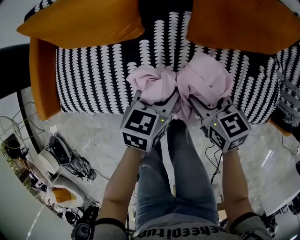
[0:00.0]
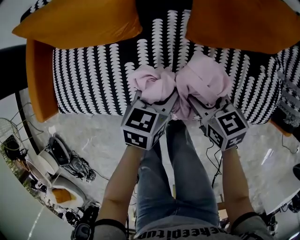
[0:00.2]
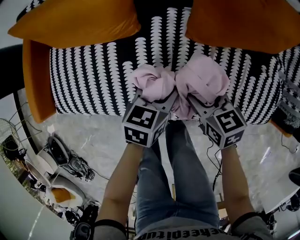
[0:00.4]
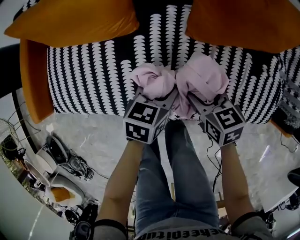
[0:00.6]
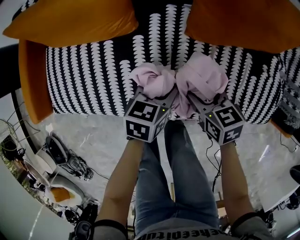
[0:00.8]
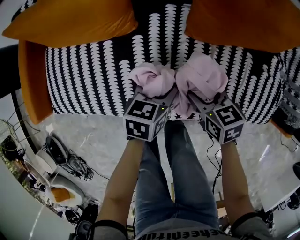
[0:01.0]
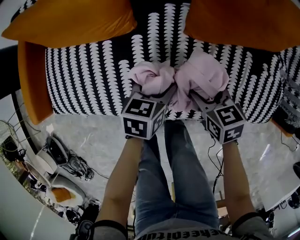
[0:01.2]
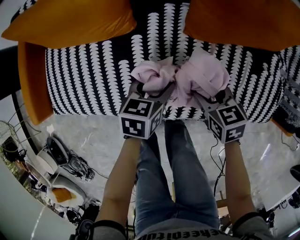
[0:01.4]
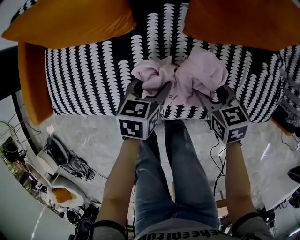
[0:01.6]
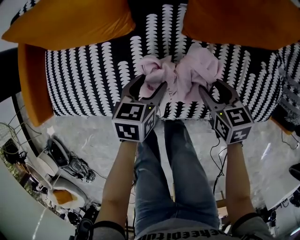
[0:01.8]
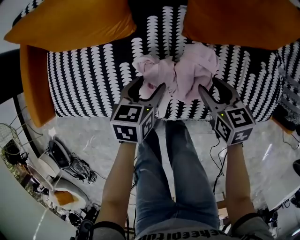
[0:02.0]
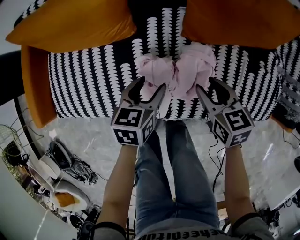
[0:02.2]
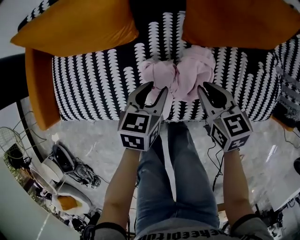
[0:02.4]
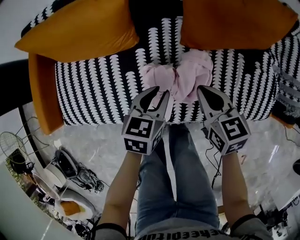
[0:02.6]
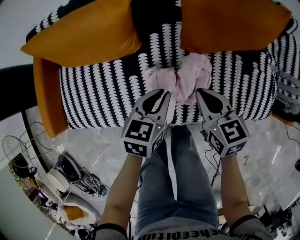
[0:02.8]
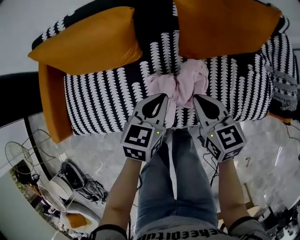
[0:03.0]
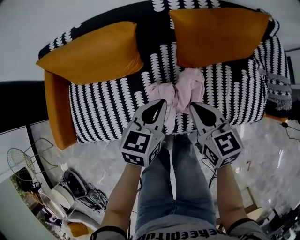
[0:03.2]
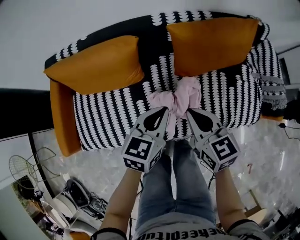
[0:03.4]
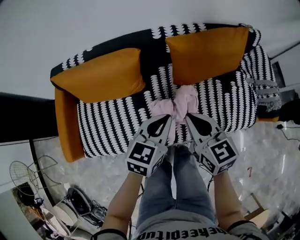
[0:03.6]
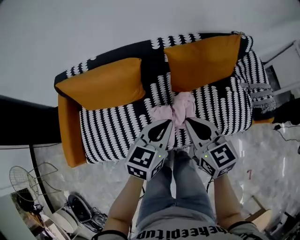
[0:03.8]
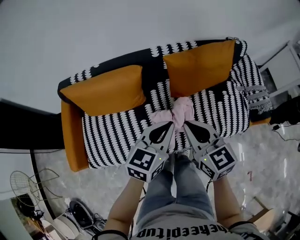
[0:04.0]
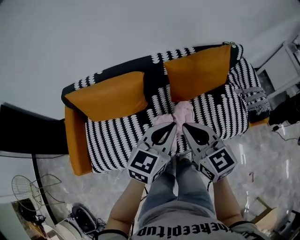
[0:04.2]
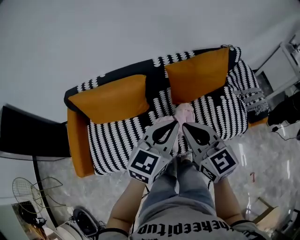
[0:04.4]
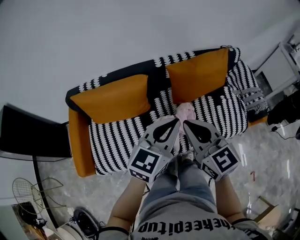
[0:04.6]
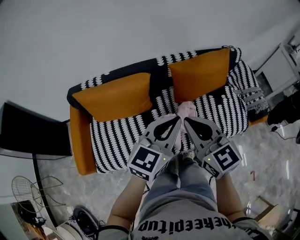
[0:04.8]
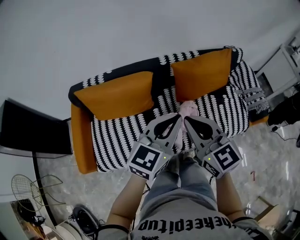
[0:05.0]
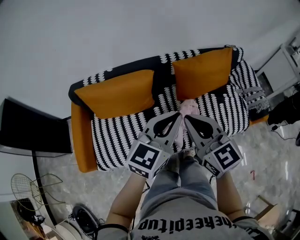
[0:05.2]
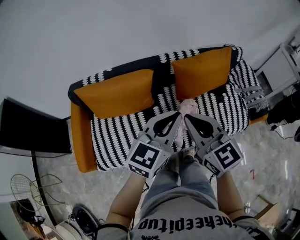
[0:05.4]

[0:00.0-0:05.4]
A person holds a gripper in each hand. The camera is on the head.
0:00.0 to 0:01.4: The left gripper goes roughly 10 cm downward; the right gripper is displaced downward and to the right by roughly 15 cm.
0:01.4 to 0:02.8: Both grippers travel together upward, about 15 cm. The left gripper closes; the right gripper closes up.
0:02.8 to 0:04.0: The grippers both shift upward by about 25 cm. The right gripper changes its angle by approximately 20 degrees; the left gripper swivels about 30 degrees.
0:04.0 to 0:05.4: The left gripper travels upward by roughly 10 cm; the right gripper travels upward and to the left by about 15 cm.

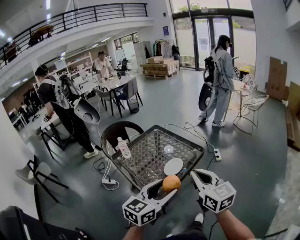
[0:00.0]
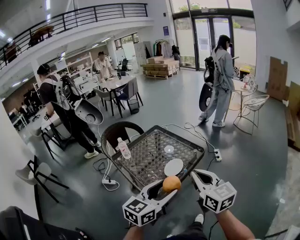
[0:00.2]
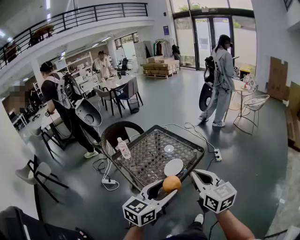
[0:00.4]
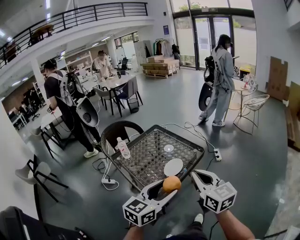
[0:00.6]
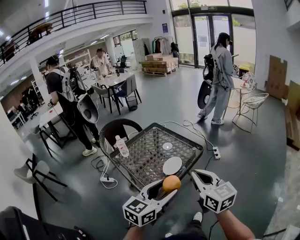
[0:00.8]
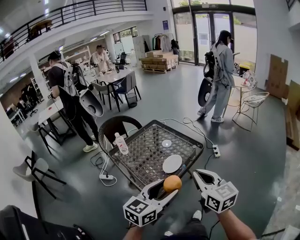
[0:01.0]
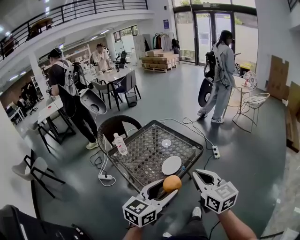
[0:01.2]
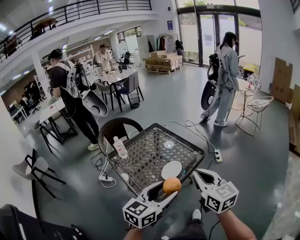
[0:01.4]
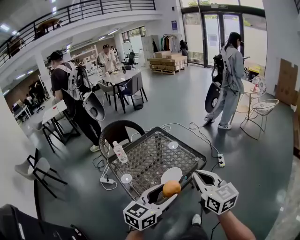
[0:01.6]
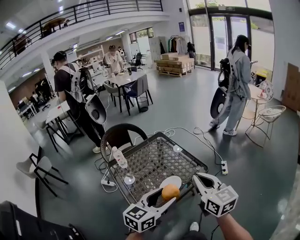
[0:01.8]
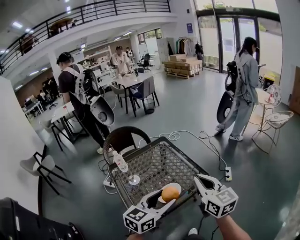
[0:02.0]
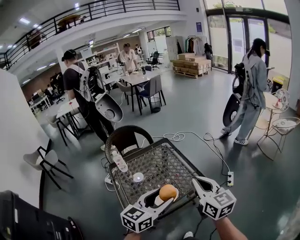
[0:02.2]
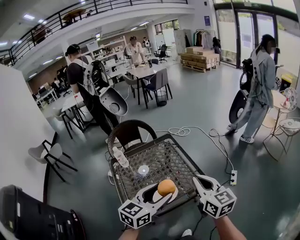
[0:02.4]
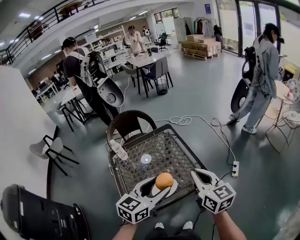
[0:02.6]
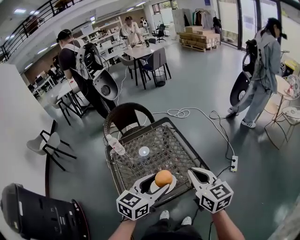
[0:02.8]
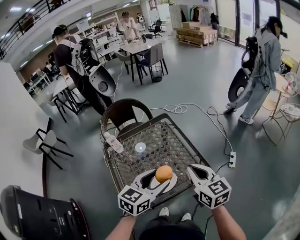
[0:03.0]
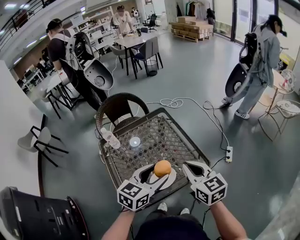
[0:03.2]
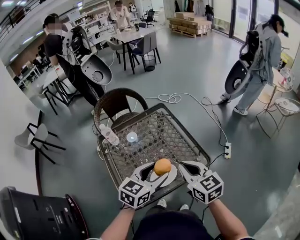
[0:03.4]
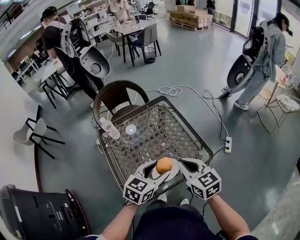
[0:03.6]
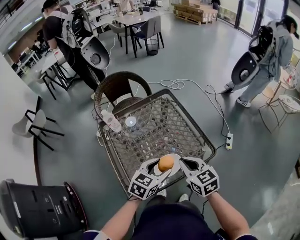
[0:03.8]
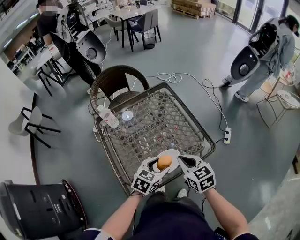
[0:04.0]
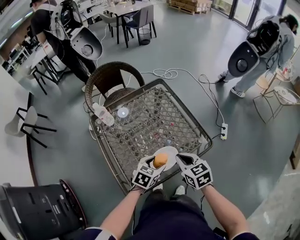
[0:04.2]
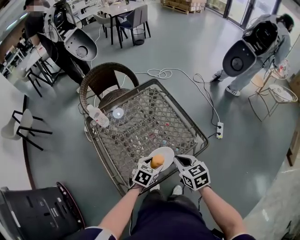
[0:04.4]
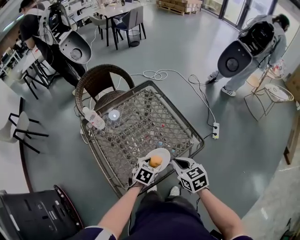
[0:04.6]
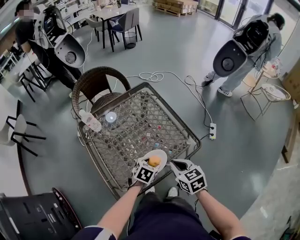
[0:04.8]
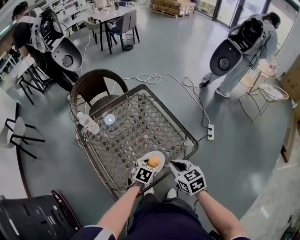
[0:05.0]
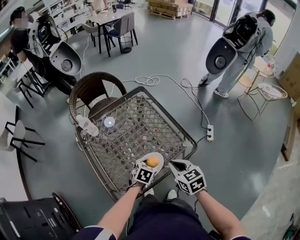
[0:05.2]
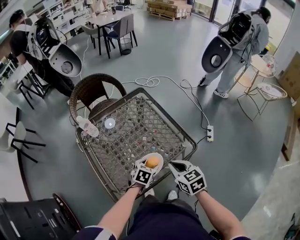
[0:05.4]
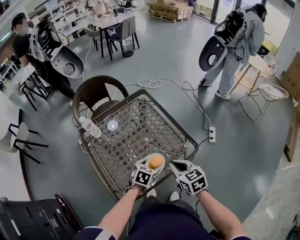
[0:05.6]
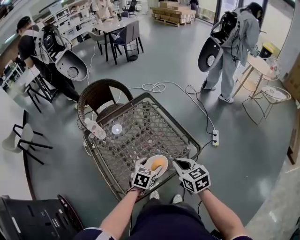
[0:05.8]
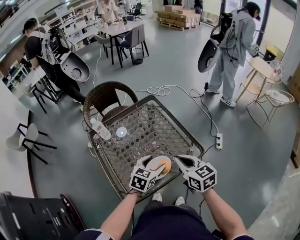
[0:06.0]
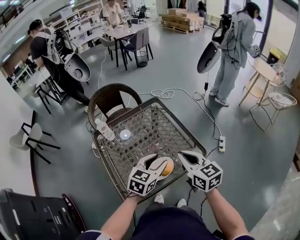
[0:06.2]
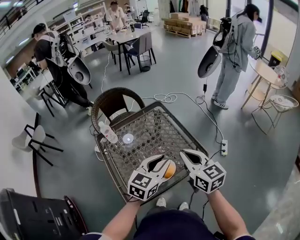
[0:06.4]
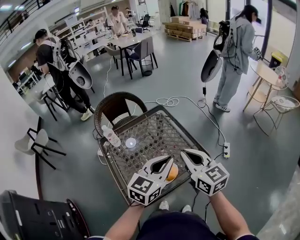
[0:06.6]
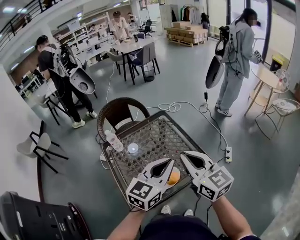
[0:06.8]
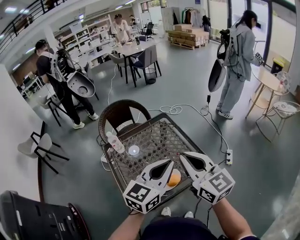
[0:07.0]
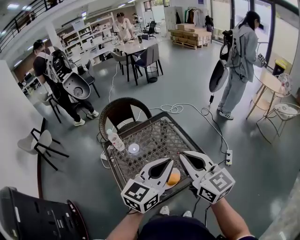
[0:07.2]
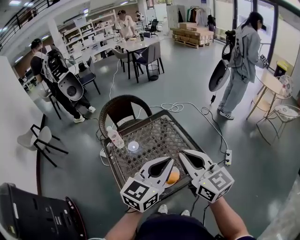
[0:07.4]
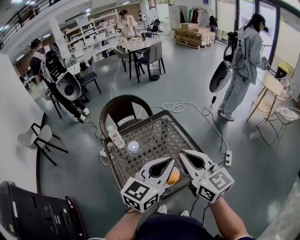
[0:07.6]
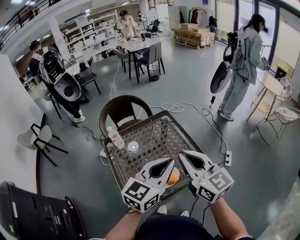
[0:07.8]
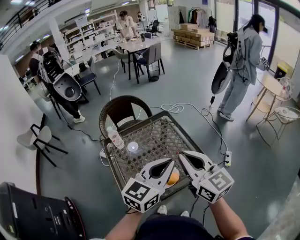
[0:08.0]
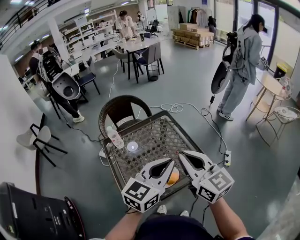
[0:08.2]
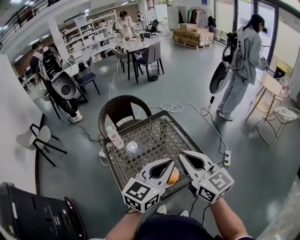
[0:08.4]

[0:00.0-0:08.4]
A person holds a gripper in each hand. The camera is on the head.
0:00.0 to 0:01.4: The left gripper moves approximately 5 cm. Meanwhile the right gripper heads forward, covering roughly 5 cm.
0:01.4 to 0:02.8: The grippers both shift forward by some 25 cm. The right gripper turns by roughly 20 degrees. The left gripper rotates some 20 degrees.
0:02.8 to 0:04.2: The right gripper goes approximately 20 cm downward and to the left, and turns by about 30 degrees, while the left gripper travels downward by some 25 cm, and turns by some 30 degrees.
0:04.2 to 0:05.6: The left gripper ends up roughly 5 cm from where it was.
0:05.6 to 0:07.0: Both grippers travel together upward, approximately 30 cm. The left gripper tilts its fingers about 50 degrees upward, and closes up; the right gripper angles its fingers upward, by about 40 degrees.
0:07.0 to 0:08.4: Both grippers stay about where they are.

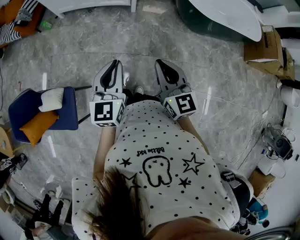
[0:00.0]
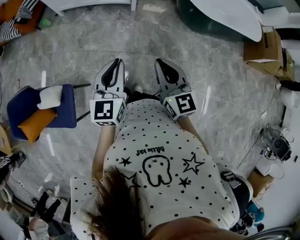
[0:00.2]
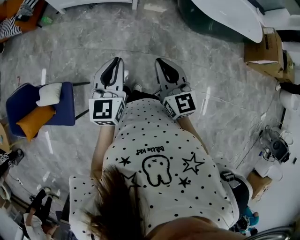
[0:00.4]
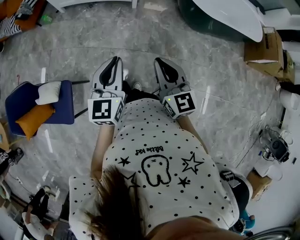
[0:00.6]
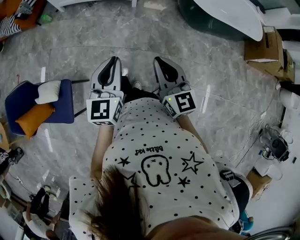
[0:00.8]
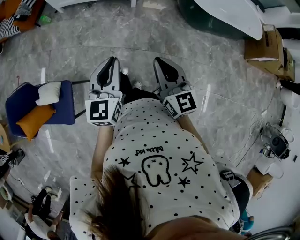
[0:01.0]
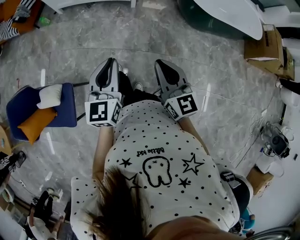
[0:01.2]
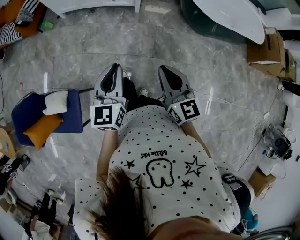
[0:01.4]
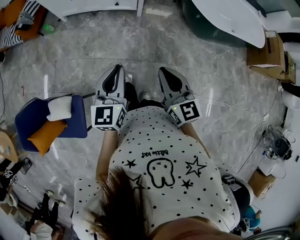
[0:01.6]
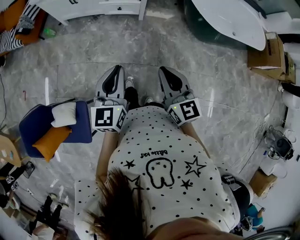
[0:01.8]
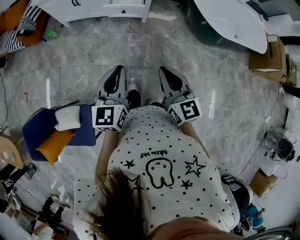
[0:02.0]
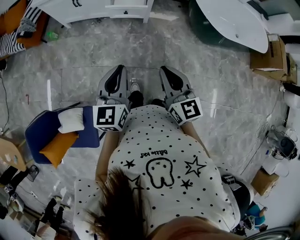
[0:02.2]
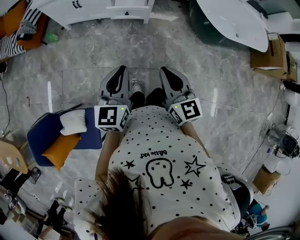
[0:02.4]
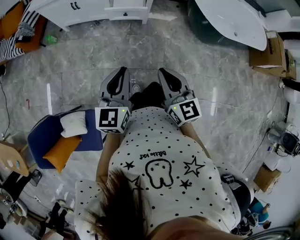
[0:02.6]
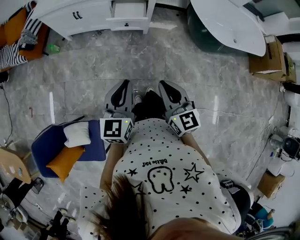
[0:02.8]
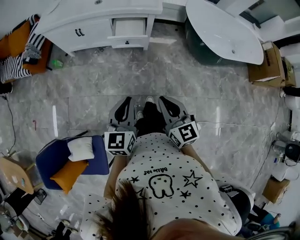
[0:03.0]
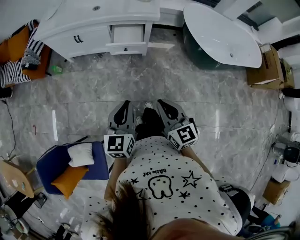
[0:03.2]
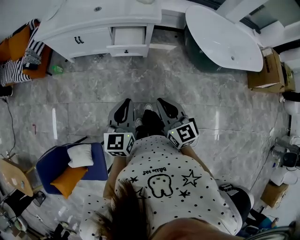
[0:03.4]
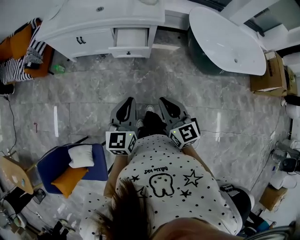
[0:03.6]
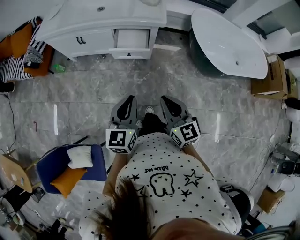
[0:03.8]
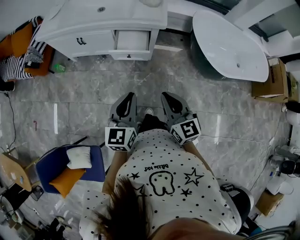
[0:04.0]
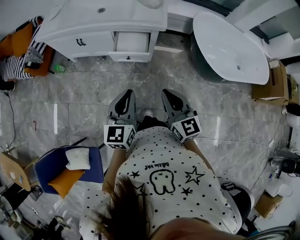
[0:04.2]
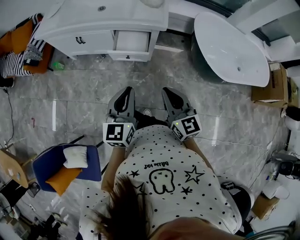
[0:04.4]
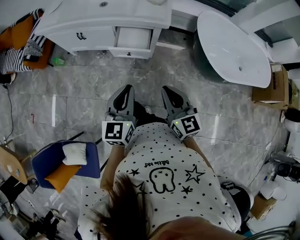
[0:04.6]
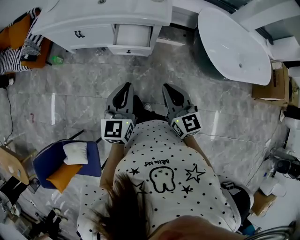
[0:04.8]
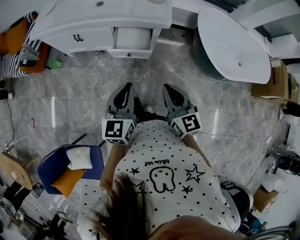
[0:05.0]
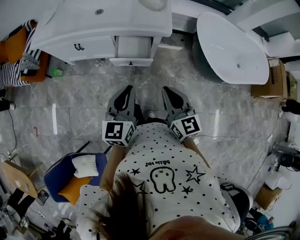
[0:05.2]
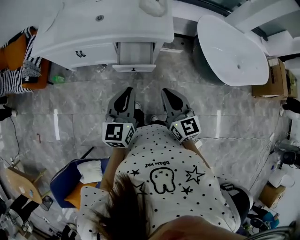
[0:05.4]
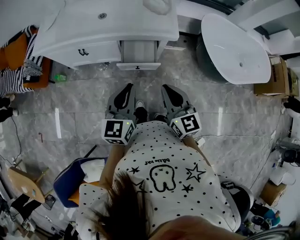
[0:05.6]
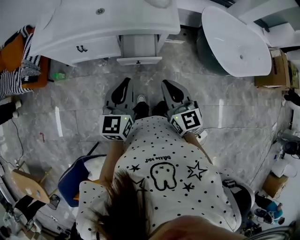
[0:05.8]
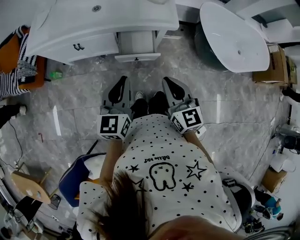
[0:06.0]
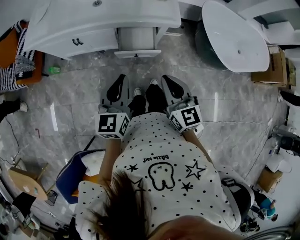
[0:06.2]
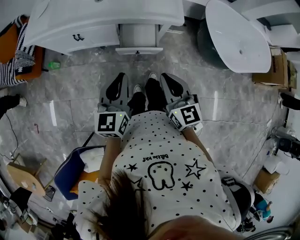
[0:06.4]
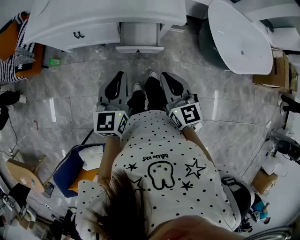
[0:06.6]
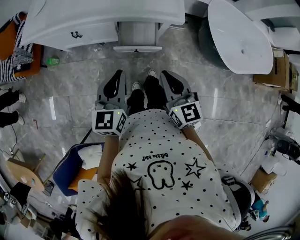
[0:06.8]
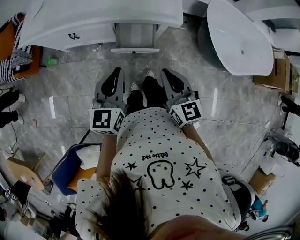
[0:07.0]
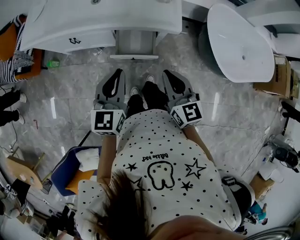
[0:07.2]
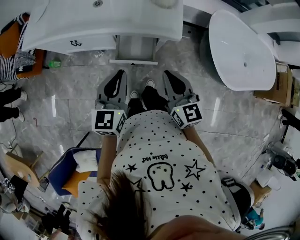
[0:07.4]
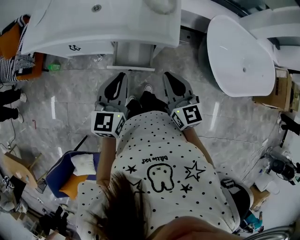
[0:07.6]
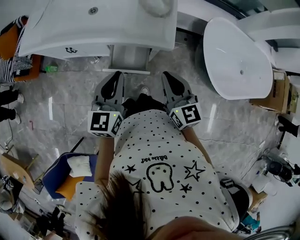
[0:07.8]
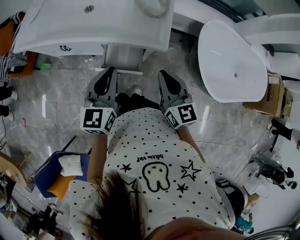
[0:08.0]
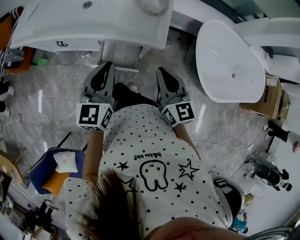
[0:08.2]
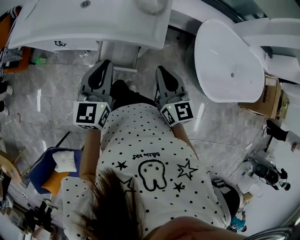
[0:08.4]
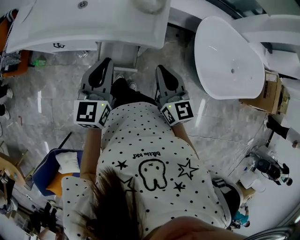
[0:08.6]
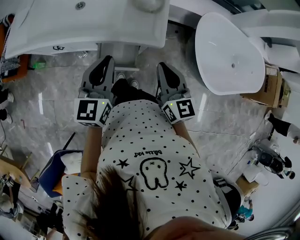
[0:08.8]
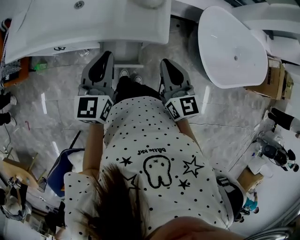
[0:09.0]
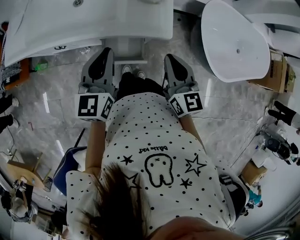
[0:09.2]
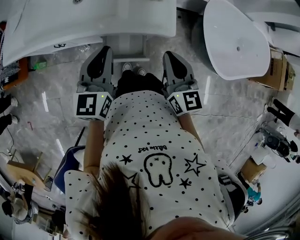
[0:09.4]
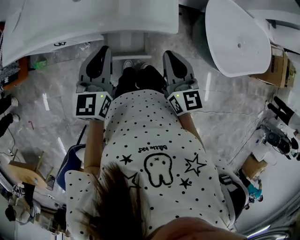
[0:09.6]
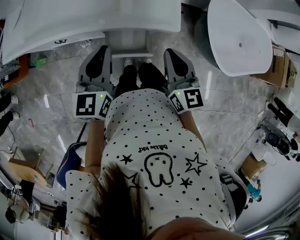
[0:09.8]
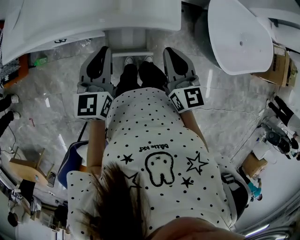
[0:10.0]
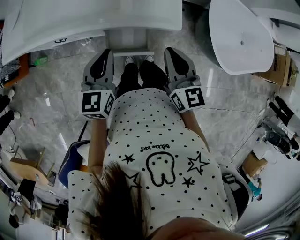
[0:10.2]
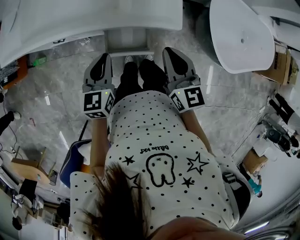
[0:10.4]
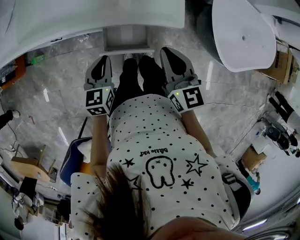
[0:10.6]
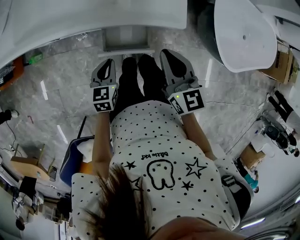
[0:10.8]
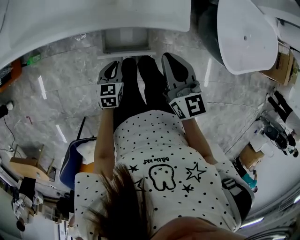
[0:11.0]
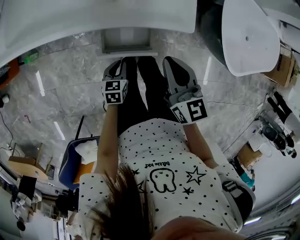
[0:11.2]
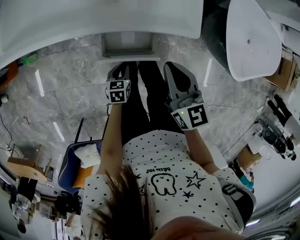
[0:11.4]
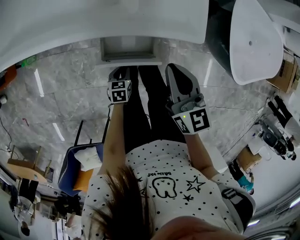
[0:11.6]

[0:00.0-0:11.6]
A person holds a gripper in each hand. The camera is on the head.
0:00.0 to 0:01.4: The grippers make only small movements.
0:01.4 to 0:02.8: Both grippers travel together forward and to the left, about 20 cm.
0:02.8 to 0:04.4: The left gripper shifts some 20 cm forward. The right gripper shifts approximately 20 cm forward and to the right.
0:04.4 to 0:05.8: The two grippers go about 15 cm forward and to the left.
0:05.8 to 0:07.2: Both grippers move forward, some 10 cm.
0:07.2 to 0:08.8: Both grippers move forward and to the right, about 15 cm.
0:08.8 to 0:10.2: The right gripper changes place by some 5 cm. Meanwhile the left gripper shifts roughly 10 cm downward and to the left.
0:10.2 to 0:11.6: The left gripper goes roughly 40 cm downward, and points its fingers approximately 40 degrees further downward. The right gripper shifts about 10 cm downward.
